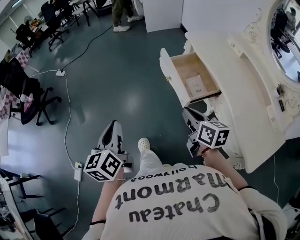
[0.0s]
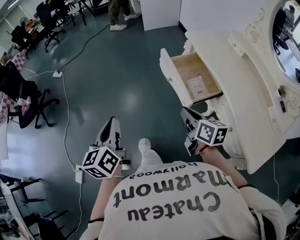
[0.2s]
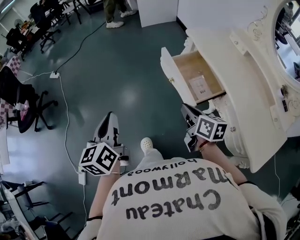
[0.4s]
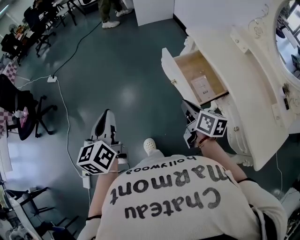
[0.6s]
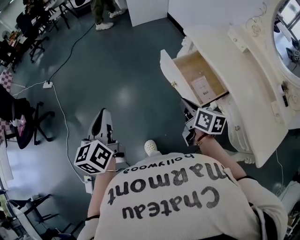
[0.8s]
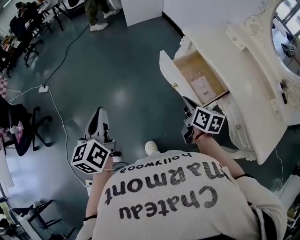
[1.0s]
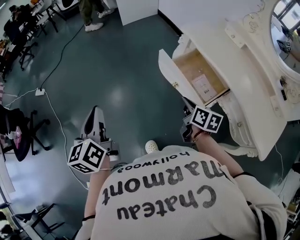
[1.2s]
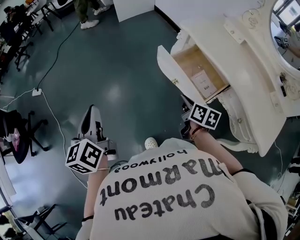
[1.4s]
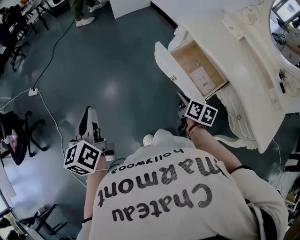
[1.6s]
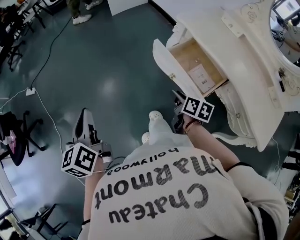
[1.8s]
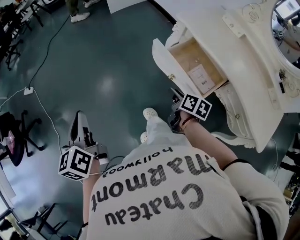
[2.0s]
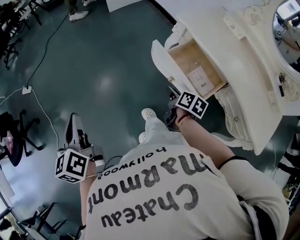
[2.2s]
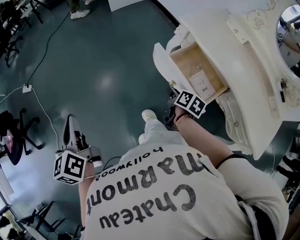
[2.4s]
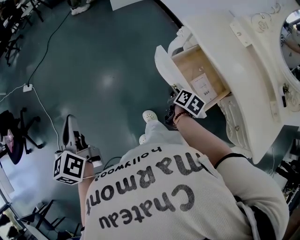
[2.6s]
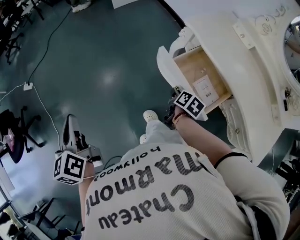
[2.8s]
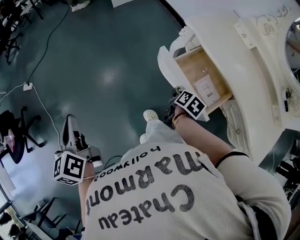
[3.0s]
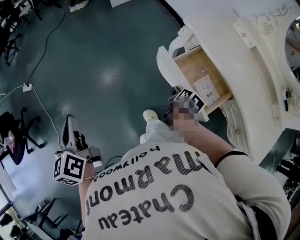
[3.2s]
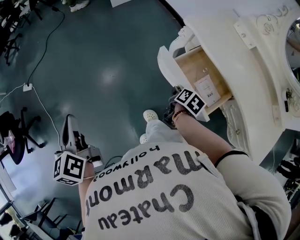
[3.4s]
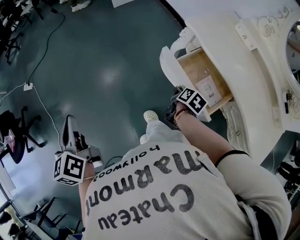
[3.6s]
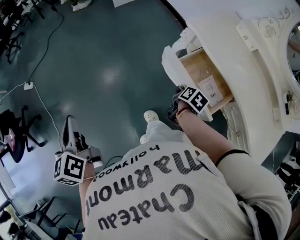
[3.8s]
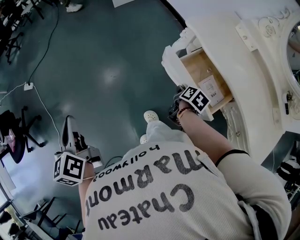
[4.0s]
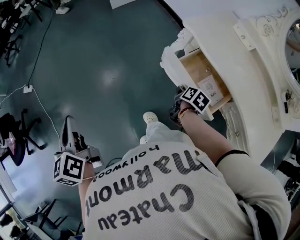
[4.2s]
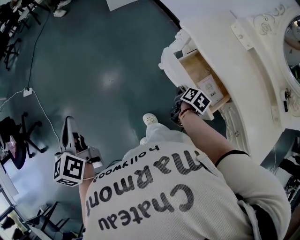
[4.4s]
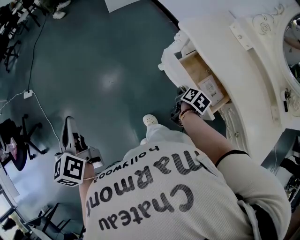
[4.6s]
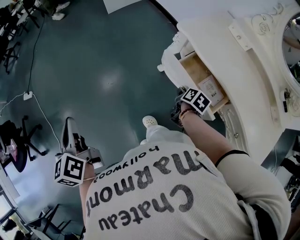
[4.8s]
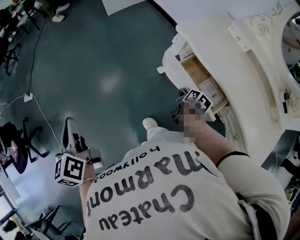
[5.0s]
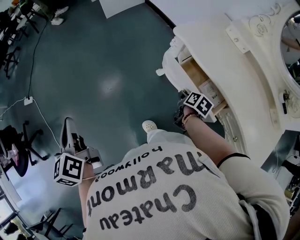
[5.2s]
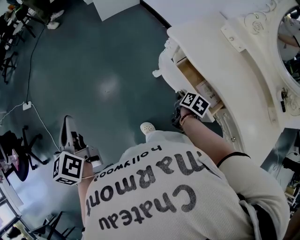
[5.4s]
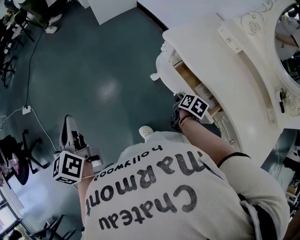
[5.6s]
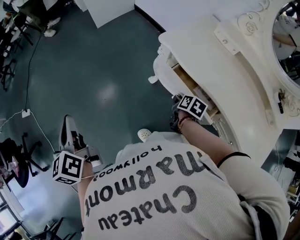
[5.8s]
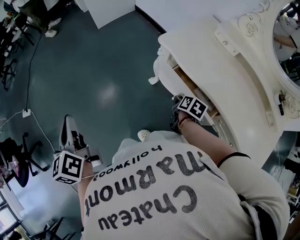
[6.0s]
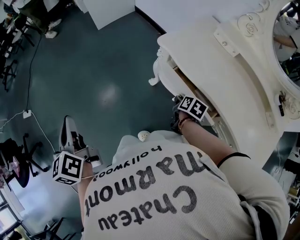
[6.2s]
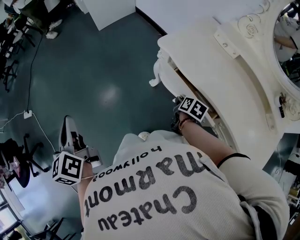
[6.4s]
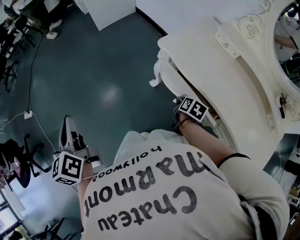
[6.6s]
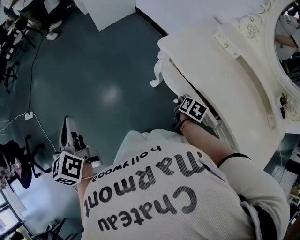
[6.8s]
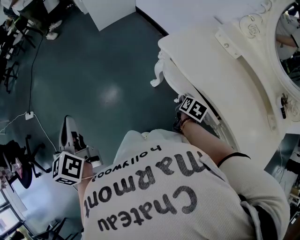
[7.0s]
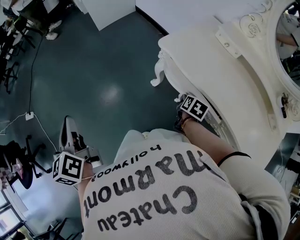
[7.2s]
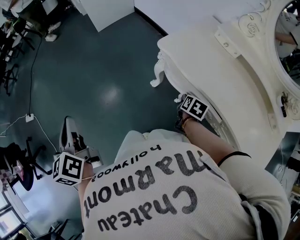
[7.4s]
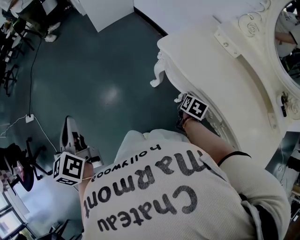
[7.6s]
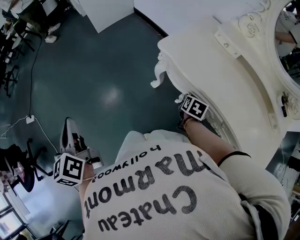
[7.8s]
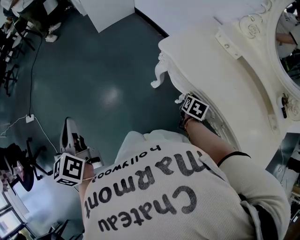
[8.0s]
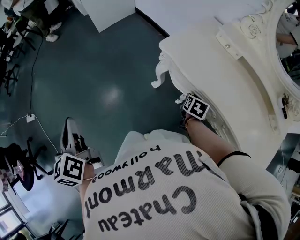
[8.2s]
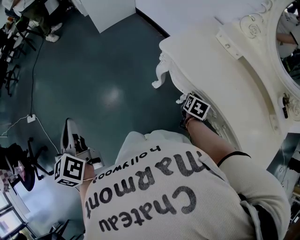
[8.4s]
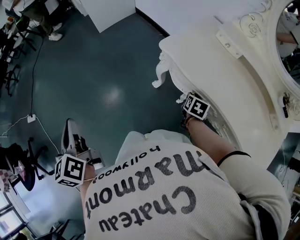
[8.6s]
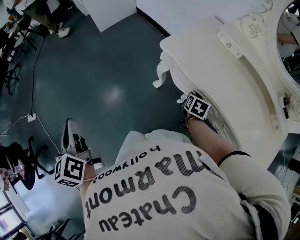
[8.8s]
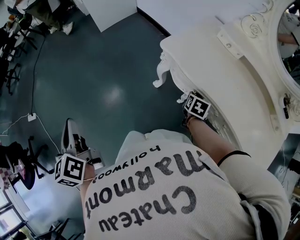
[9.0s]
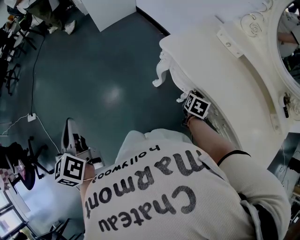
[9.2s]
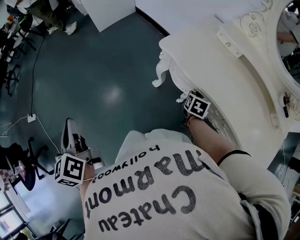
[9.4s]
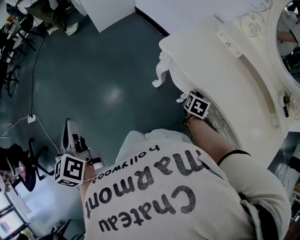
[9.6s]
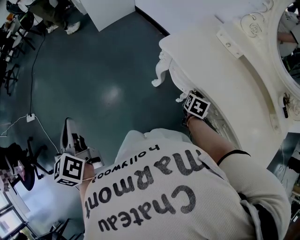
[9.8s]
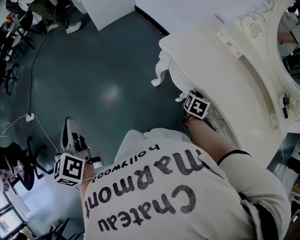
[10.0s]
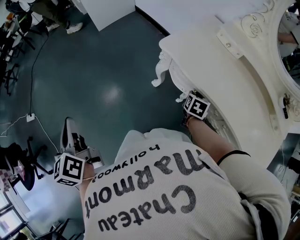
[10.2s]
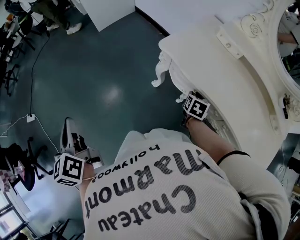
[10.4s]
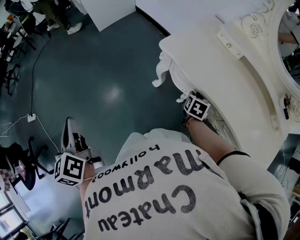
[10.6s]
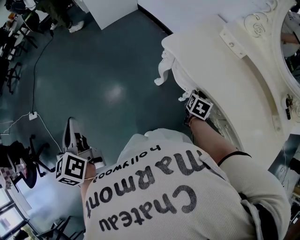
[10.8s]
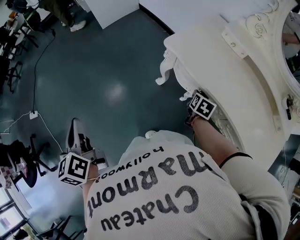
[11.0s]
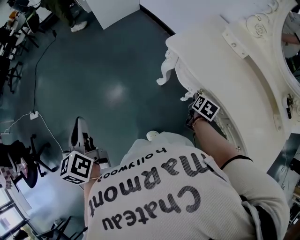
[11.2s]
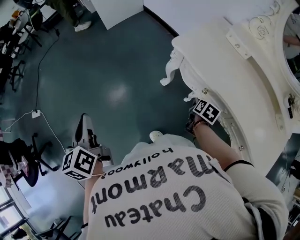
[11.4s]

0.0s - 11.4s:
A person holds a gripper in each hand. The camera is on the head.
0.0s - 1.4s: The right gripper shifts approximately 20 cm forward and downward, and swivels some 30 degrees. Meanwhile the left gripper heads forward and to the left, covering roughly 25 cm.
1.4s - 2.8s: The left gripper moves forward and to the left, approximately 10 cm, while the right gripper goes approximately 15 cm forward and downward, and rotates approximately 20 degrees.
2.8s - 4.2s: The grippers move only a little.
4.2s - 5.6s: The left gripper travels forward and to the right by about 10 cm; the right gripper is displaced to the right by approximately 5 cm.
5.6s - 7.2s: The right gripper moves to the right, approximately 5 cm. The left gripper moves some 5 cm.
7.2s - 8.6s: The grippers make only small movements.
8.6s - 10.0s: Both grippers stay put.
10.0s - 11.4s: The right gripper shifts by about 5 cm.

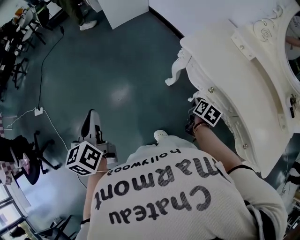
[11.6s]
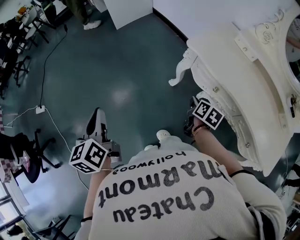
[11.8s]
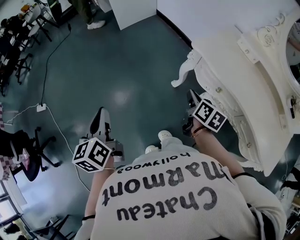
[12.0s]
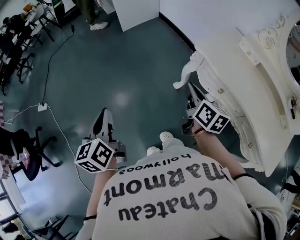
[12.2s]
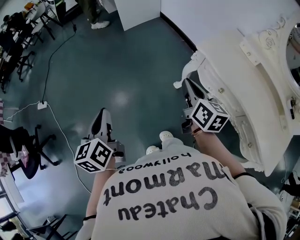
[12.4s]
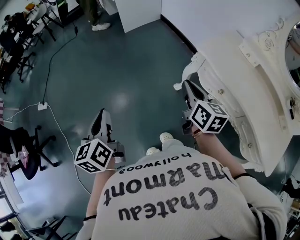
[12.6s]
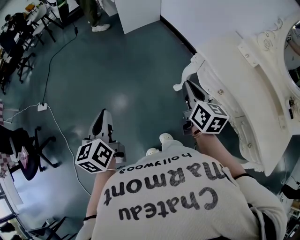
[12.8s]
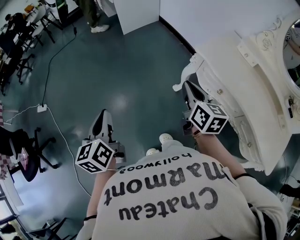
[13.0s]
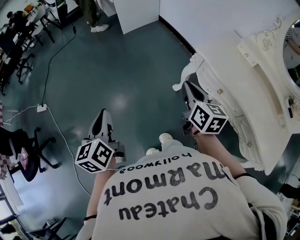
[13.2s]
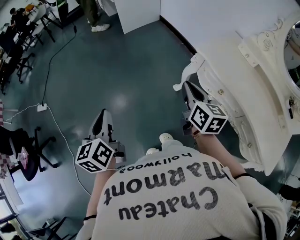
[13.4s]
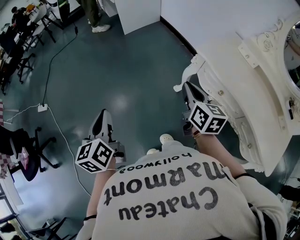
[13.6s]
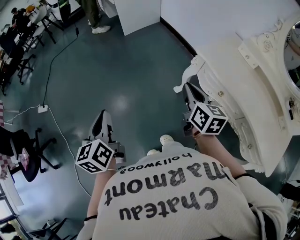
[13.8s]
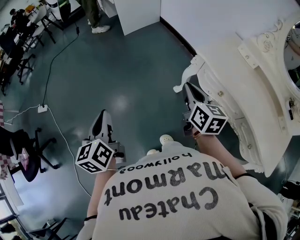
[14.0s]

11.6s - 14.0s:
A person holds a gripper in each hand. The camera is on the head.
11.6s - 12.8s: The right gripper travels upward and to the left by approximately 30 cm, and angles its fingers upward, by roughly 30 degrees; the left gripper shifts approximately 10 cm to the left and backward.
12.8s - 14.0s: The two grippers keep their place.

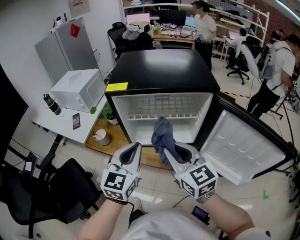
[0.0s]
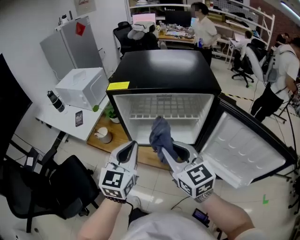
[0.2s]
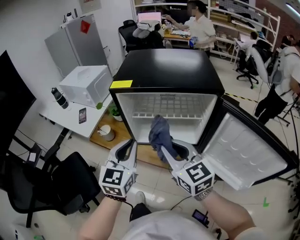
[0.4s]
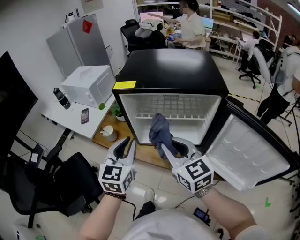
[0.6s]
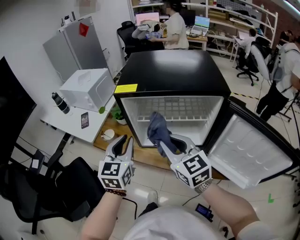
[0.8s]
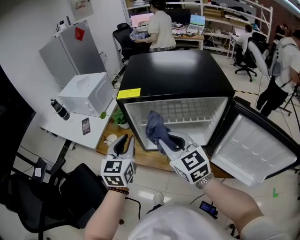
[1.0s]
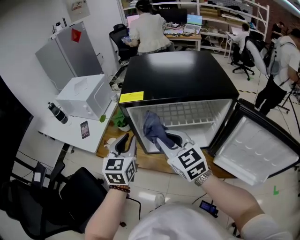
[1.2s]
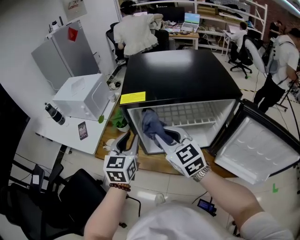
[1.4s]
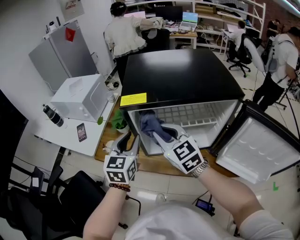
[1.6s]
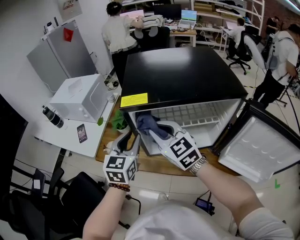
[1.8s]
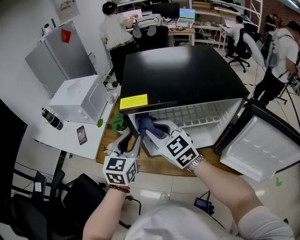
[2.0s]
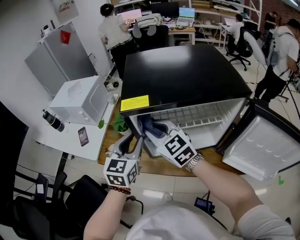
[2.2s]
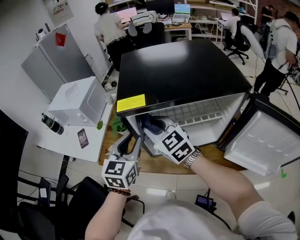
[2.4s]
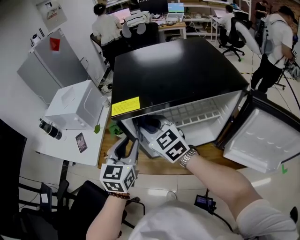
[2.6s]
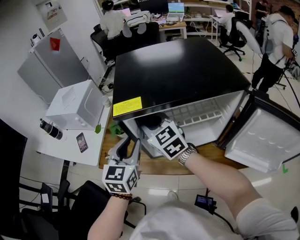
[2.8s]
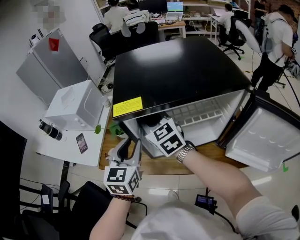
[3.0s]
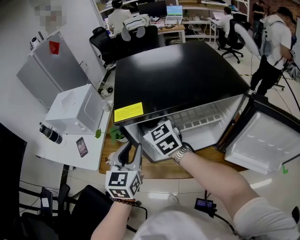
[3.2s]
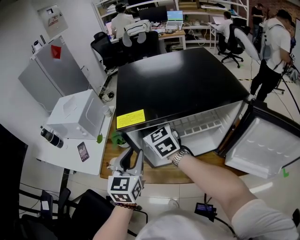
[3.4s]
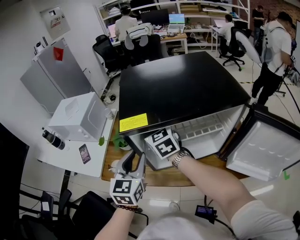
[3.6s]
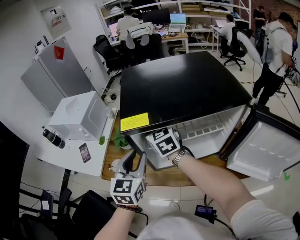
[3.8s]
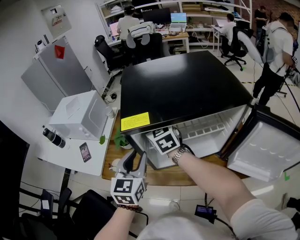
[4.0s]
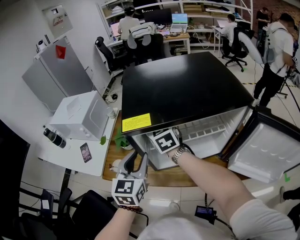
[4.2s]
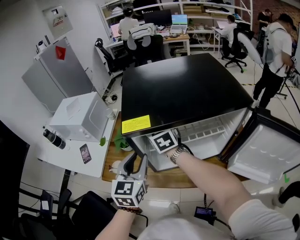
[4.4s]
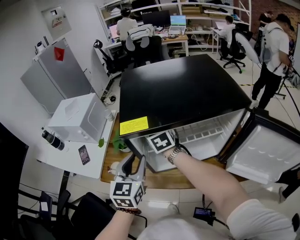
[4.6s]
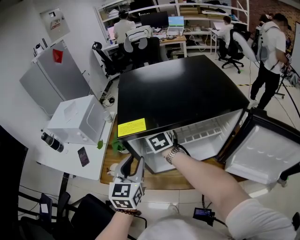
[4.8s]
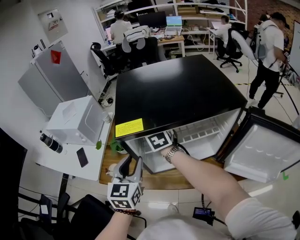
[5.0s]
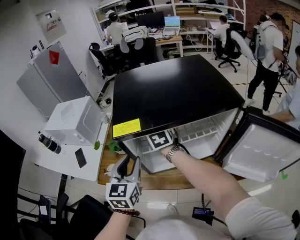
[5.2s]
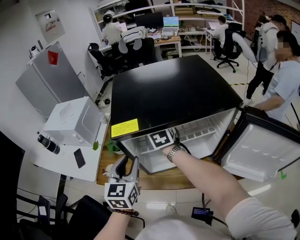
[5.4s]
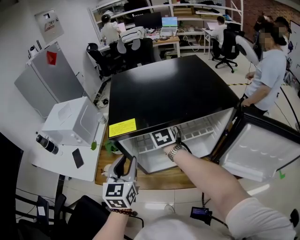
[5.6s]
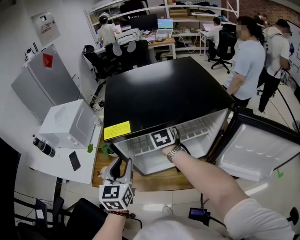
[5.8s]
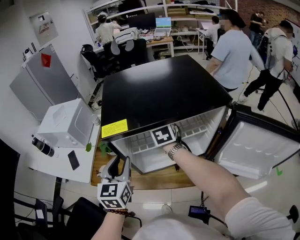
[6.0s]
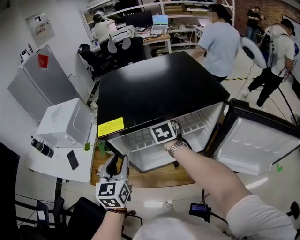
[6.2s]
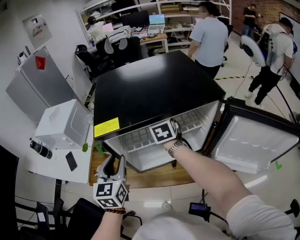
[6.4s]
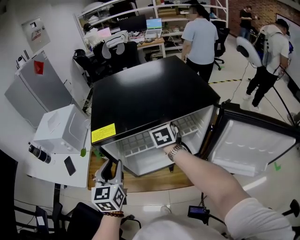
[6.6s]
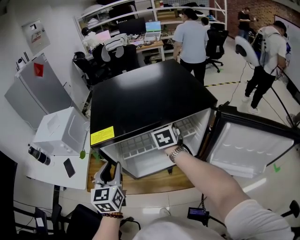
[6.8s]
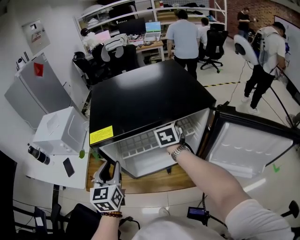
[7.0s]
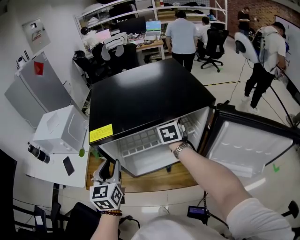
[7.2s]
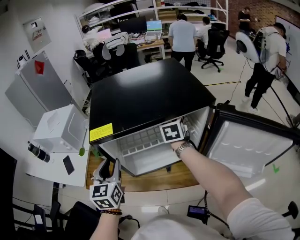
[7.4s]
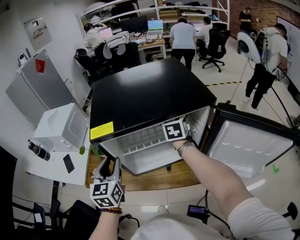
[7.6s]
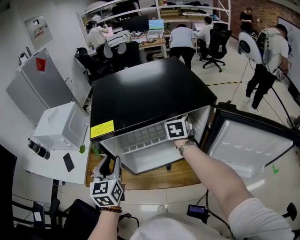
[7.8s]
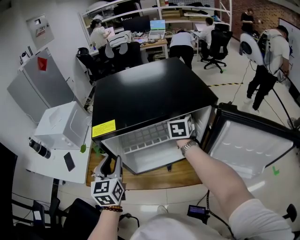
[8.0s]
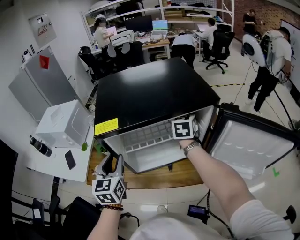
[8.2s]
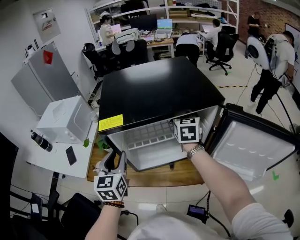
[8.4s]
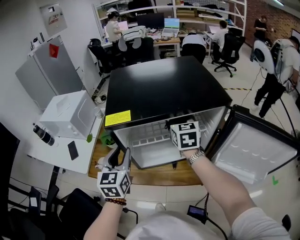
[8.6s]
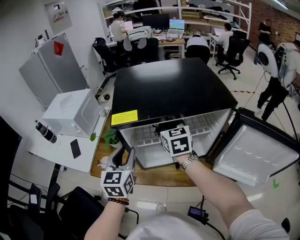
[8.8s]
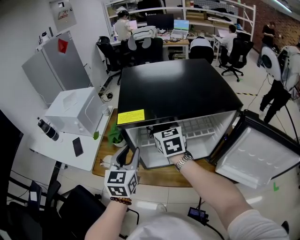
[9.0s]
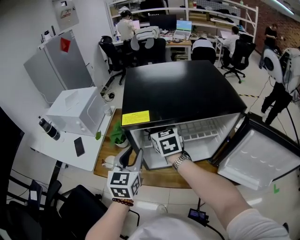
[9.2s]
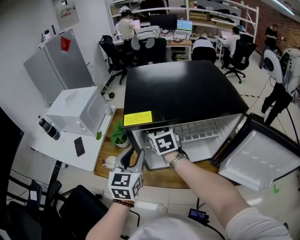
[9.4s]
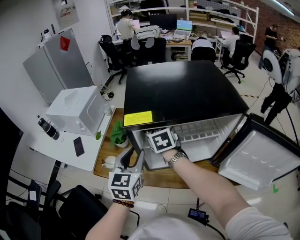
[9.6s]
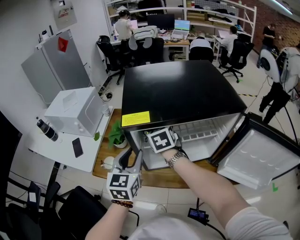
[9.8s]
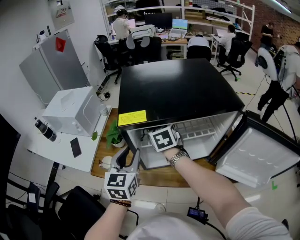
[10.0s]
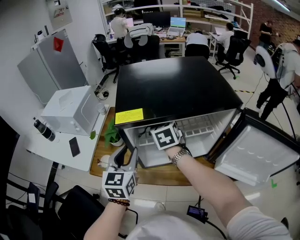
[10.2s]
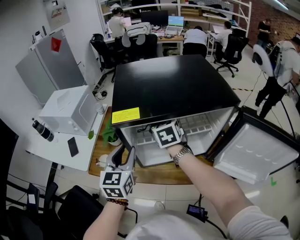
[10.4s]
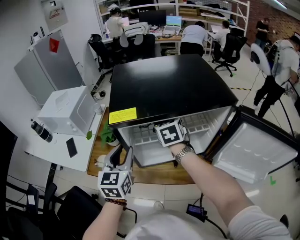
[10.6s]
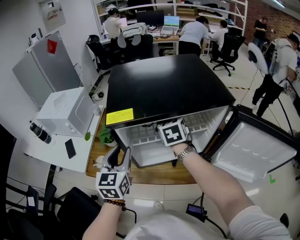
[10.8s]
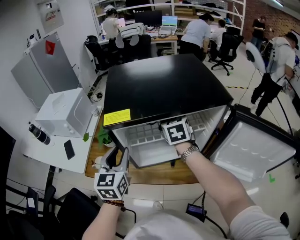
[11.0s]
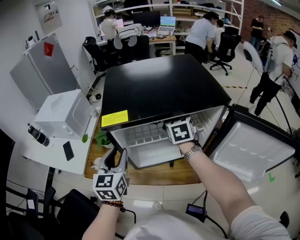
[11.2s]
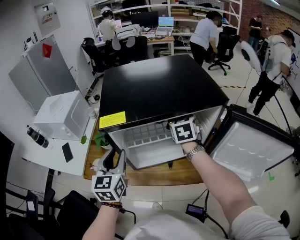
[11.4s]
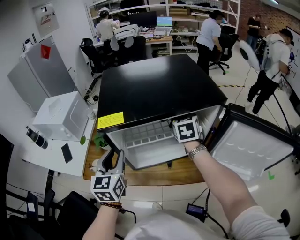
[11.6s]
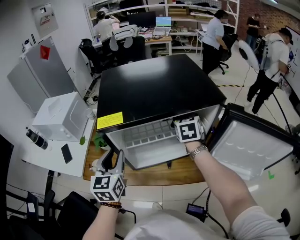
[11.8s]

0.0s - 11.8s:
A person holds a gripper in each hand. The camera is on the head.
0.0s - 1.4s: The grippers both shift forward and to the left by about 15 cm. The left gripper opens its fingers.
1.4s - 3.0s: The right gripper shifts about 15 cm forward.
3.0s - 4.4s: The right gripper shifts roughly 5 cm forward.
4.4s - 6.0s: The right gripper heads to the right, covering roughly 10 cm.
6.0s - 7.4s: The right gripper heads to the right, covering approximately 10 cm.
7.4s - 8.8s: The right gripper heads to the left and backward, covering roughly 15 cm.
8.8s - 10.4s: The right gripper goes roughly 5 cm downward, and moves roughly 10 cm to the left and comes back.
10.4s - 11.8s: The right gripper goes some 15 cm to the right.
